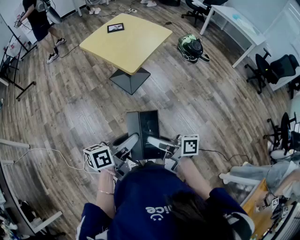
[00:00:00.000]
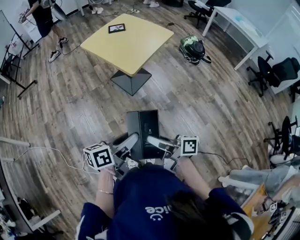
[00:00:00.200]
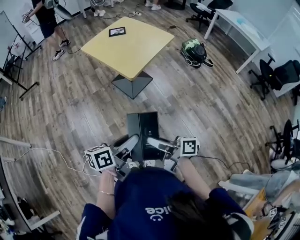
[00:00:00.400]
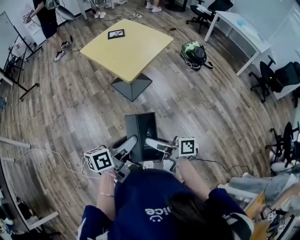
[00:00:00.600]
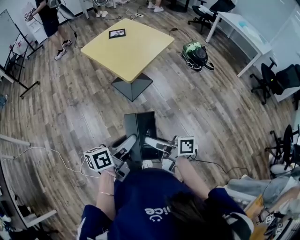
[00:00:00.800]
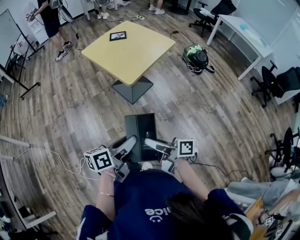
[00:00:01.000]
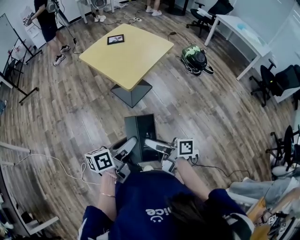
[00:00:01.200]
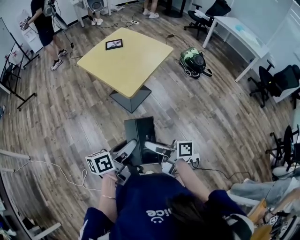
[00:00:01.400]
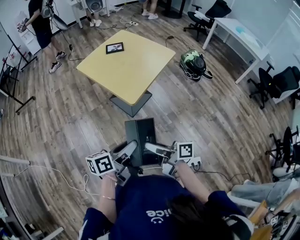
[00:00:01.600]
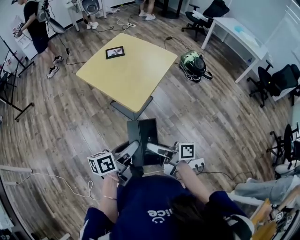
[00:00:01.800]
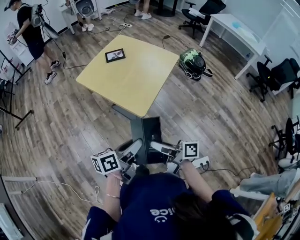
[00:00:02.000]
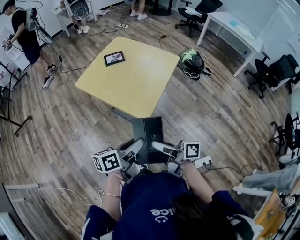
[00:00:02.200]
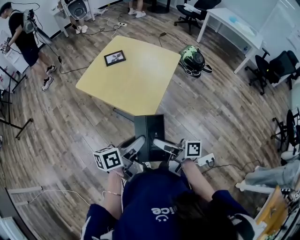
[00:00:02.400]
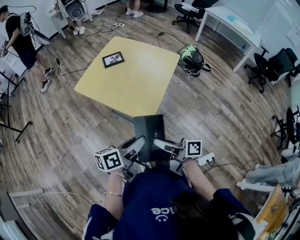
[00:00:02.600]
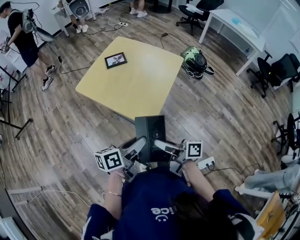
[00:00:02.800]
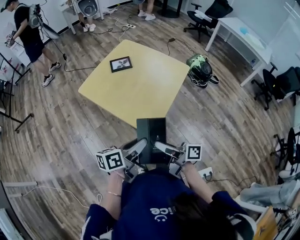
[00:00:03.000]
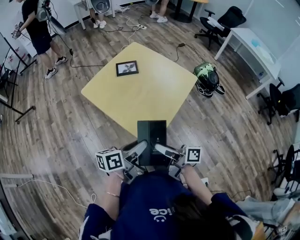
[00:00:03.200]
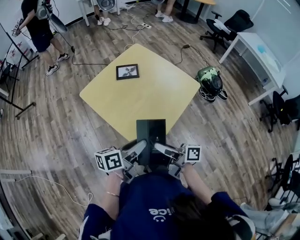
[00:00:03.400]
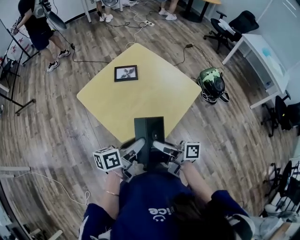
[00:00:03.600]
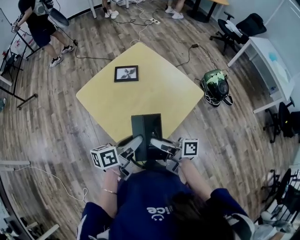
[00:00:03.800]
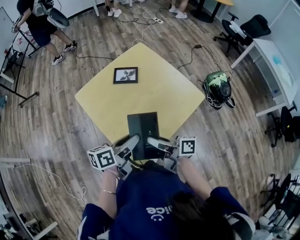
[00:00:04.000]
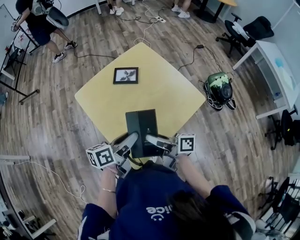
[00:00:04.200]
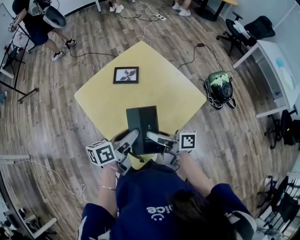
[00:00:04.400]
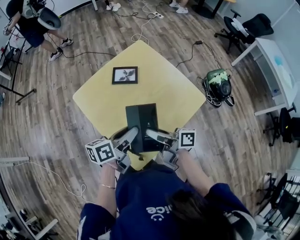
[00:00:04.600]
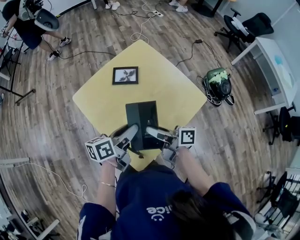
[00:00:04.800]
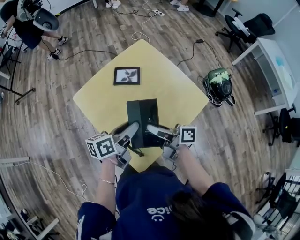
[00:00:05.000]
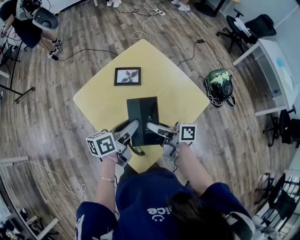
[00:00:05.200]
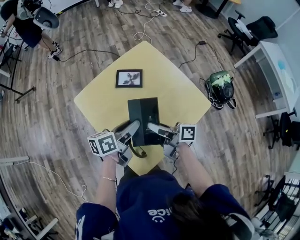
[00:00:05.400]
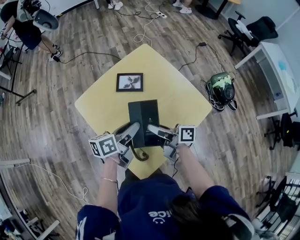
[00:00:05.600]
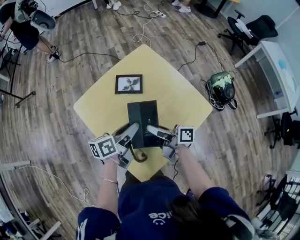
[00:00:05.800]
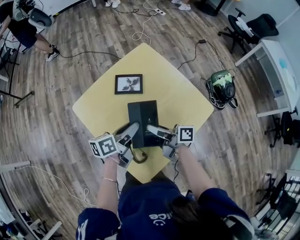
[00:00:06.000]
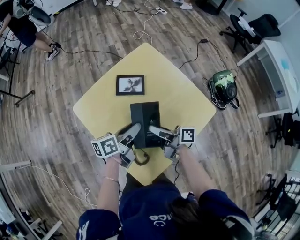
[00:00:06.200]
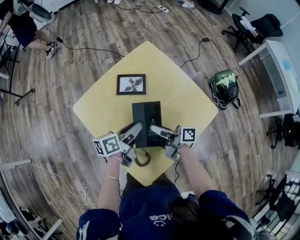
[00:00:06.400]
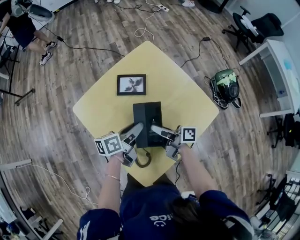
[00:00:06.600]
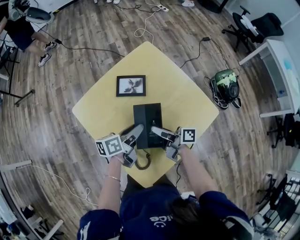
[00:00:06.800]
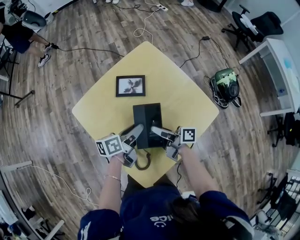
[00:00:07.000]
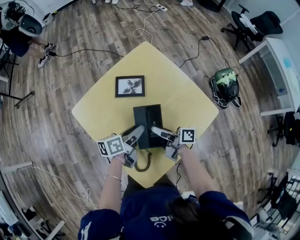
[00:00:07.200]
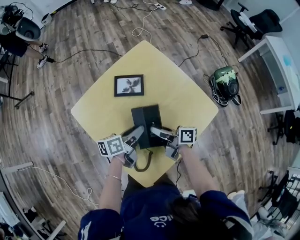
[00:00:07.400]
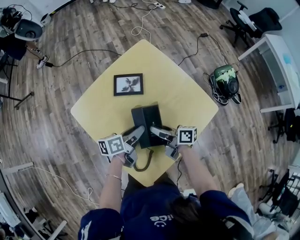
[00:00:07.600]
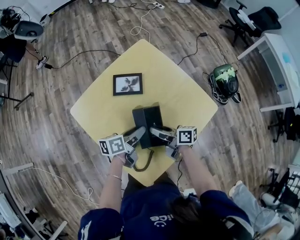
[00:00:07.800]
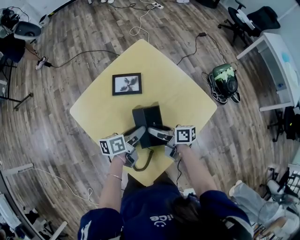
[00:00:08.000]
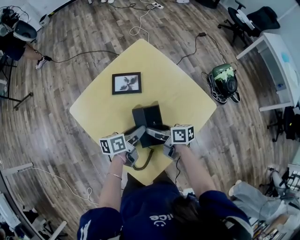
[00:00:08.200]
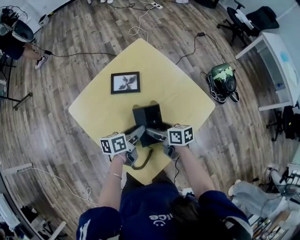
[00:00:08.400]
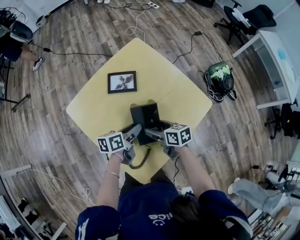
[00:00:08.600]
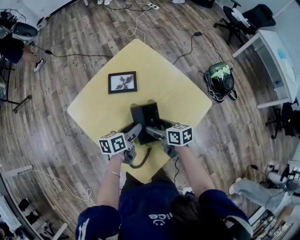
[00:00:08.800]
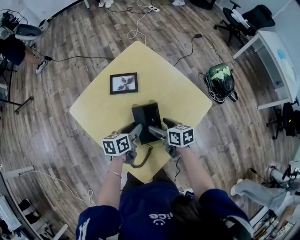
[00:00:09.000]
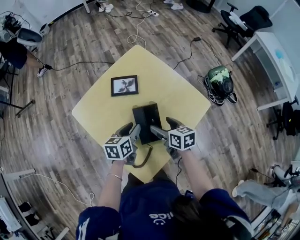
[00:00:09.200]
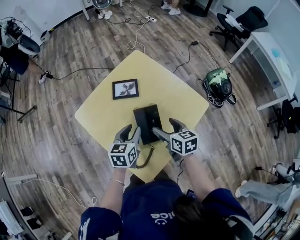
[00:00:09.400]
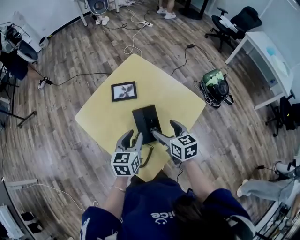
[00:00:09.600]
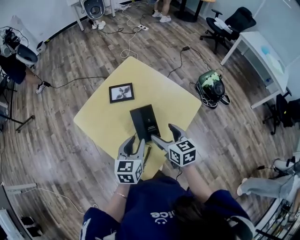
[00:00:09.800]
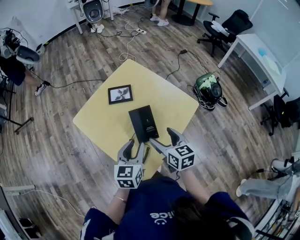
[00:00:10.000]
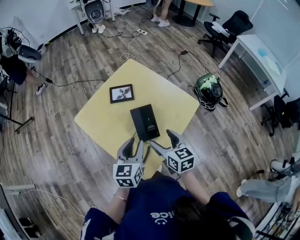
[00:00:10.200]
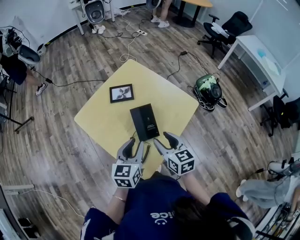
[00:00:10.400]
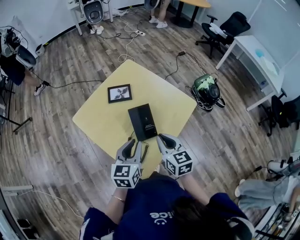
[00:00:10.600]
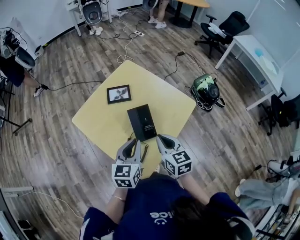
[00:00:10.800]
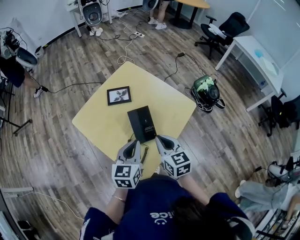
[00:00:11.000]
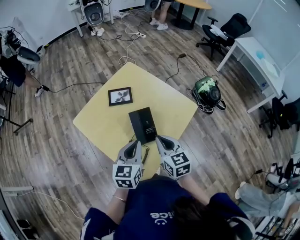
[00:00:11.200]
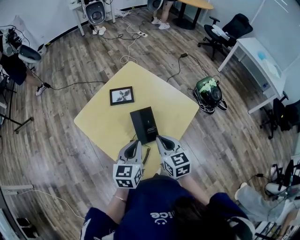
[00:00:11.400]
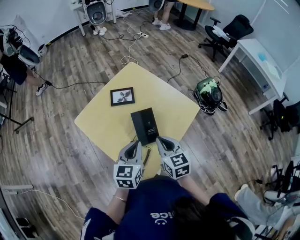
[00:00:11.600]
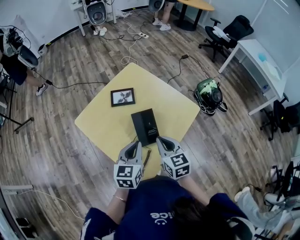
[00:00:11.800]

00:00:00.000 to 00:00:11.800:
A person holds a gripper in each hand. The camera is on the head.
00:00:00.000 to 00:00:01.400: The two grippers go roughly 10 cm forward.
00:00:01.400 to 00:00:03.000: The grippers both shift forward by approximately 25 cm.
00:00:03.000 to 00:00:04.400: Both grippers move forward, some 25 cm. The right gripper swivels approximately 20 degrees.
00:00:04.400 to 00:00:06.000: Both grippers travel together forward, about 15 cm.
00:00:06.000 to 00:00:07.400: Both grippers travel together downward, about 5 cm.
00:00:07.400 to 00:00:08.800: The right gripper changes its angle by about 30 degrees, and opens up.
00:00:08.800 to 00:00:10.400: The grippers both shift upward and backward by about 20 cm. The left gripper turns by roughly 40 degrees; the right gripper rotates about 30 degrees, and closes.
00:00:10.400 to 00:00:11.800: The left gripper closes. The right gripper closes up.

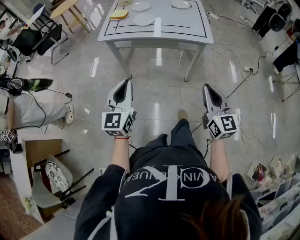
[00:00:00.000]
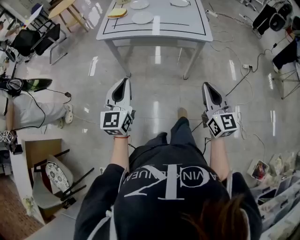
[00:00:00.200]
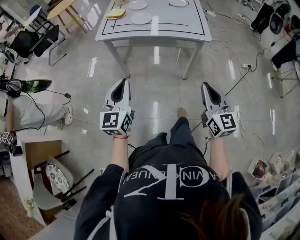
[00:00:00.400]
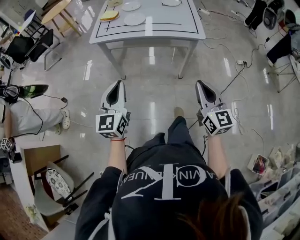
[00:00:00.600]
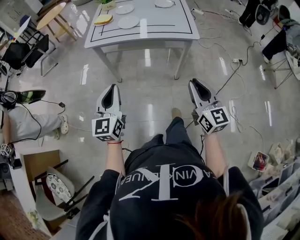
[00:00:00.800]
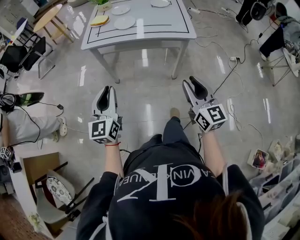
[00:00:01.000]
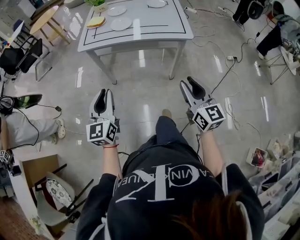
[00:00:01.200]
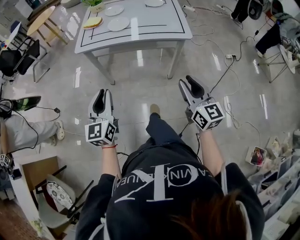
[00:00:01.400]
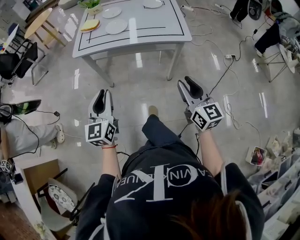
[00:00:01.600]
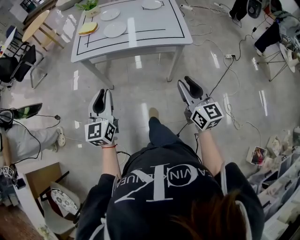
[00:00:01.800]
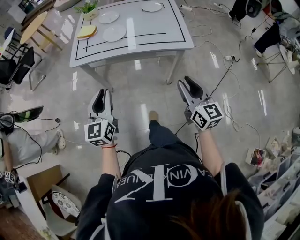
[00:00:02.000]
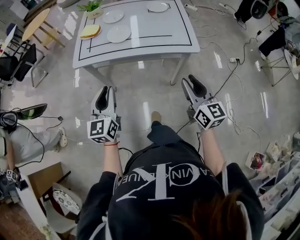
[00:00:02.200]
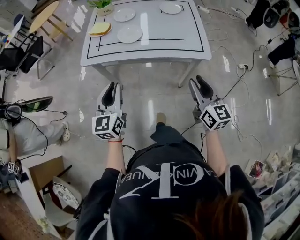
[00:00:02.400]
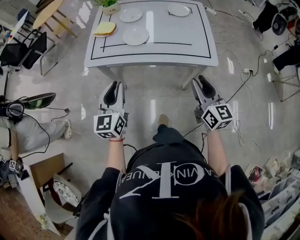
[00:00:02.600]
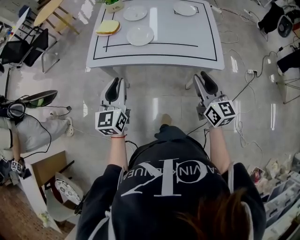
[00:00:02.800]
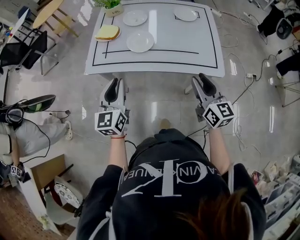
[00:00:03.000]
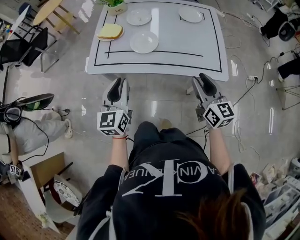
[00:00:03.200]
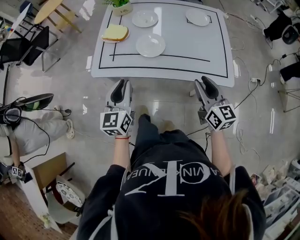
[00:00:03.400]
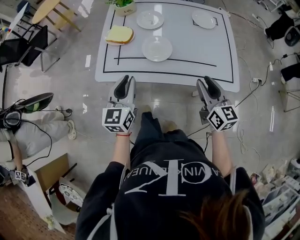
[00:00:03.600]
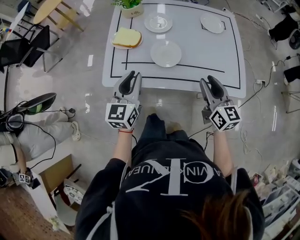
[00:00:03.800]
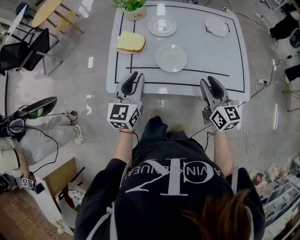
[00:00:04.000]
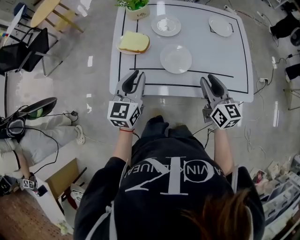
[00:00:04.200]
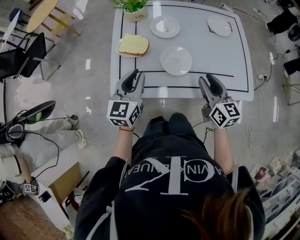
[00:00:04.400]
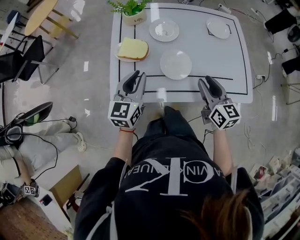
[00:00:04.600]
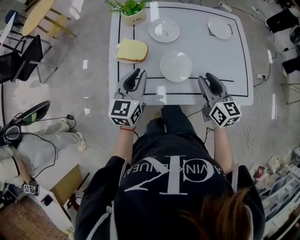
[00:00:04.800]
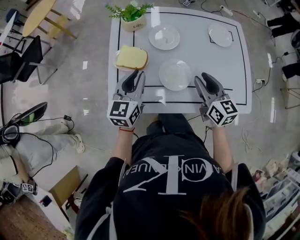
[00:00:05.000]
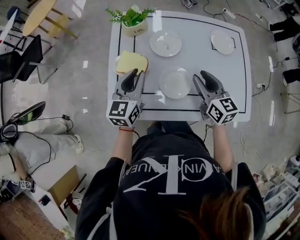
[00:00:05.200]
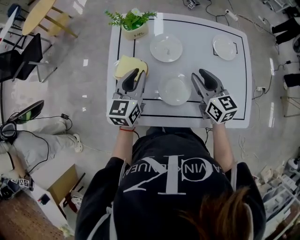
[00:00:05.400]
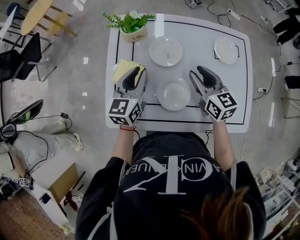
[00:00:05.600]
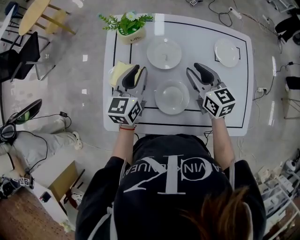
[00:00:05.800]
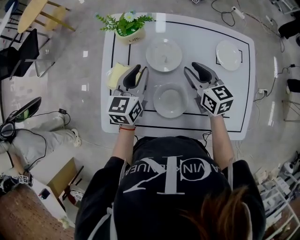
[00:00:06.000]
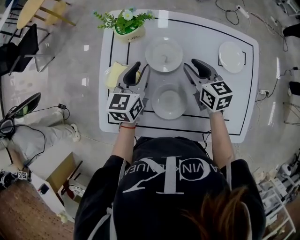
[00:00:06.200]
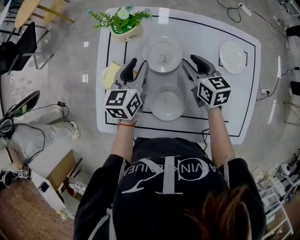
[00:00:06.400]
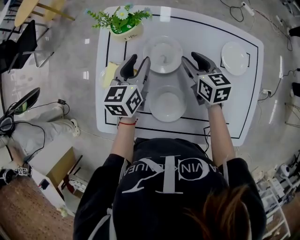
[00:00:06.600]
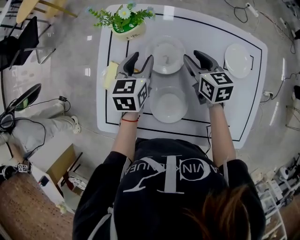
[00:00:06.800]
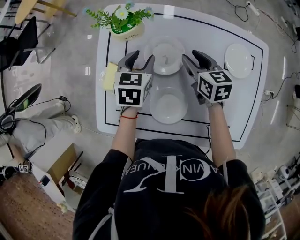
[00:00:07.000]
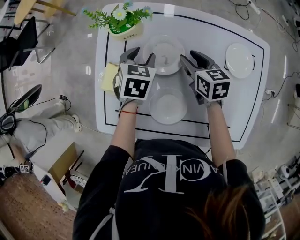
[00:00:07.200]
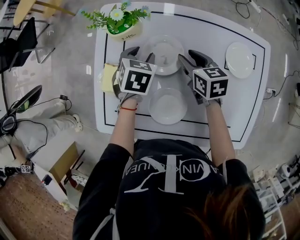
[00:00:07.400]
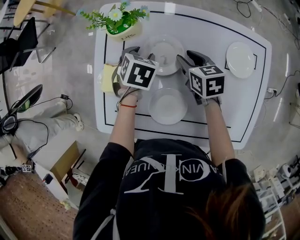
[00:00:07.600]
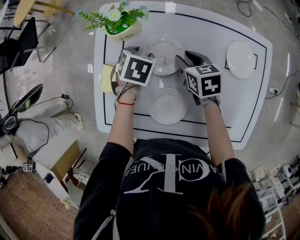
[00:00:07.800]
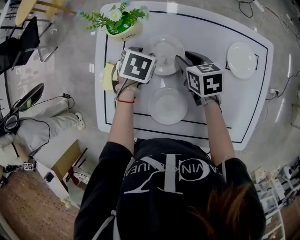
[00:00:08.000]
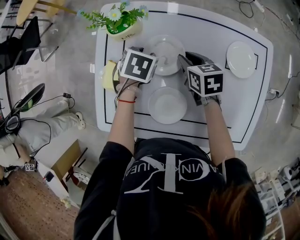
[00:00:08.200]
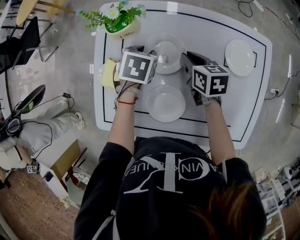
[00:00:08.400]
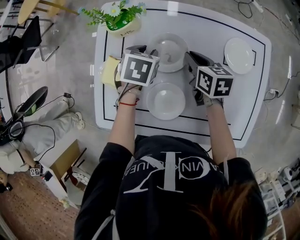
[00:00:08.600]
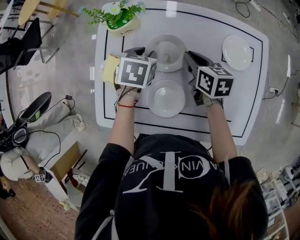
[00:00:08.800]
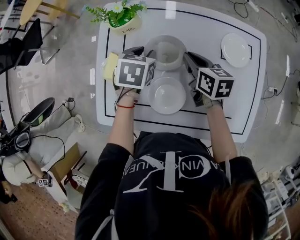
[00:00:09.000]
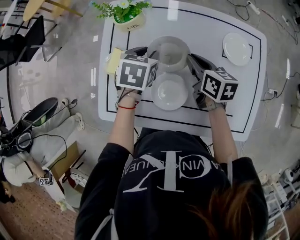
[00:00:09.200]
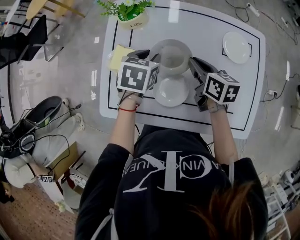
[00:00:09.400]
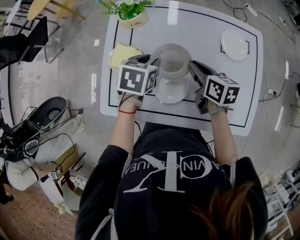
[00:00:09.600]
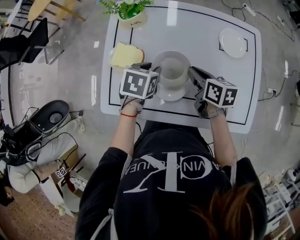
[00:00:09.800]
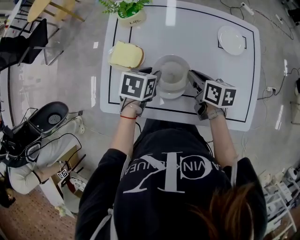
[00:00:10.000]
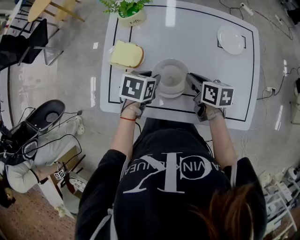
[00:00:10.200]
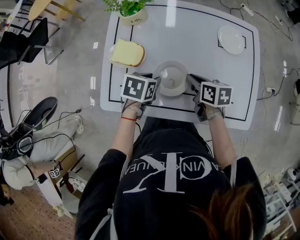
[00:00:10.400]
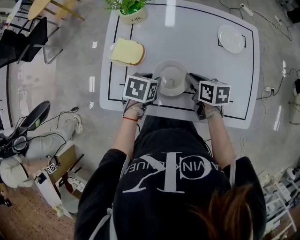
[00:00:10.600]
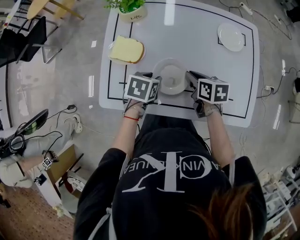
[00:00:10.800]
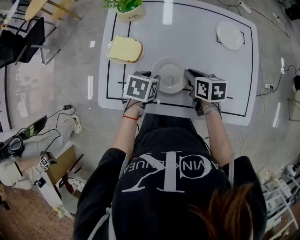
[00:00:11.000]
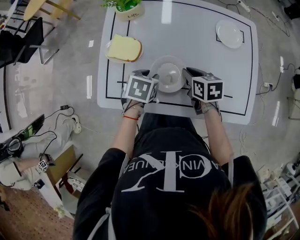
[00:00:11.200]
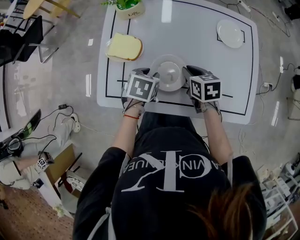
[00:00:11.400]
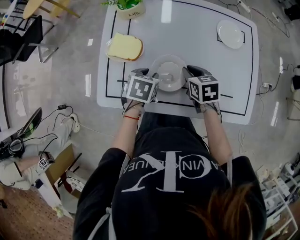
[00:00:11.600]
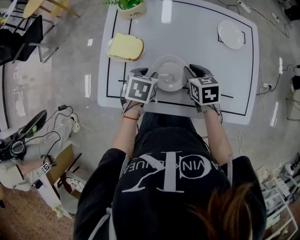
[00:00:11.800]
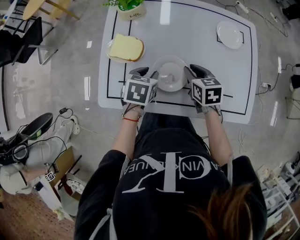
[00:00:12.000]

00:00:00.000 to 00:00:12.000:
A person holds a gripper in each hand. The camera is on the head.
00:00:00.000 to 00:00:01.600: Both grippers move forward, roughly 5 cm. The right gripper opens up.
00:00:01.600 to 00:00:03.000: The two grippers go approximately 25 cm forward.
00:00:03.000 to 00:00:04.400: Both grippers travel together forward and to the left, roughly 20 cm.
00:00:04.400 to 00:00:06.000: Both grippers travel together forward, some 25 cm.
00:00:06.000 to 00:00:07.600: Both grippers move downward and forward, roughly 15 cm. The left gripper angles its fingers downward, by roughly 50 degrees, and opens.
00:00:07.600 to 00:00:09.000: The left gripper goes some 5 cm upward. The right gripper changes place by roughly 5 cm, and closes its fingers.
00:00:09.000 to 00:00:10.400: Both grippers travel together backward, about 15 cm.
00:00:10.400 to 00:00:12.000: The right gripper swivels some 20 degrees.
